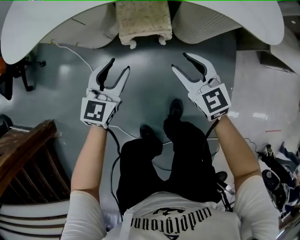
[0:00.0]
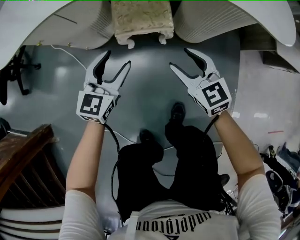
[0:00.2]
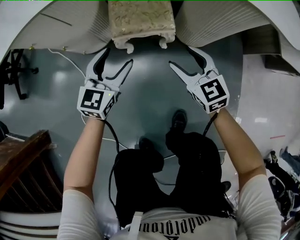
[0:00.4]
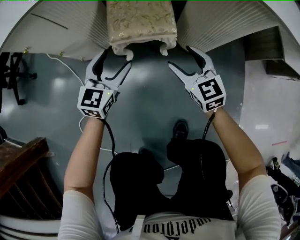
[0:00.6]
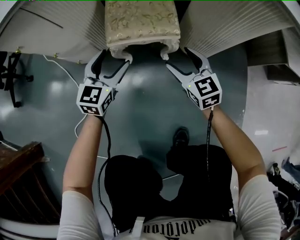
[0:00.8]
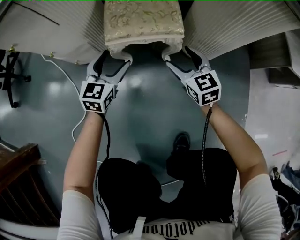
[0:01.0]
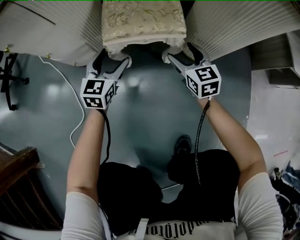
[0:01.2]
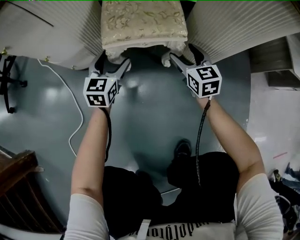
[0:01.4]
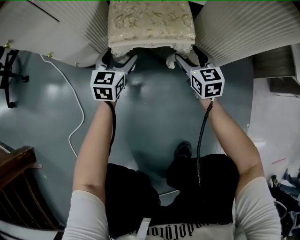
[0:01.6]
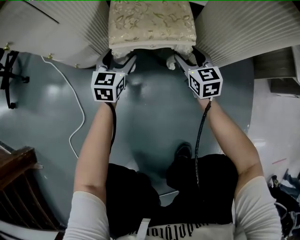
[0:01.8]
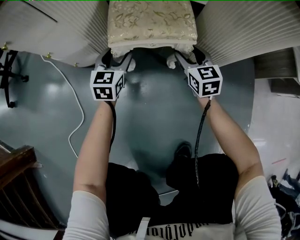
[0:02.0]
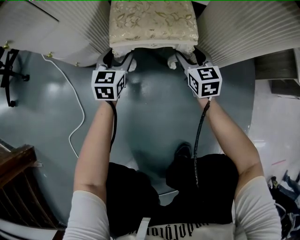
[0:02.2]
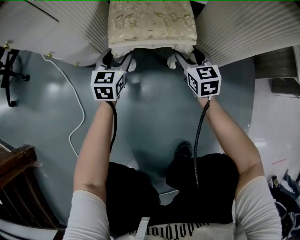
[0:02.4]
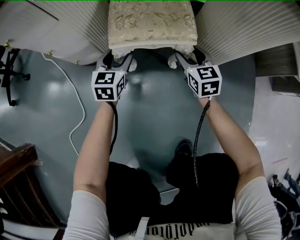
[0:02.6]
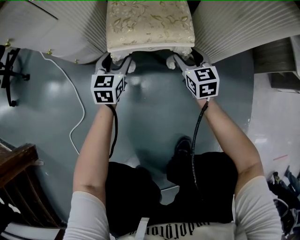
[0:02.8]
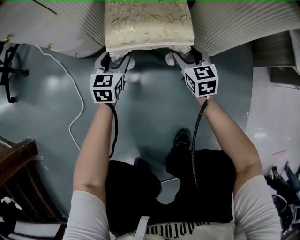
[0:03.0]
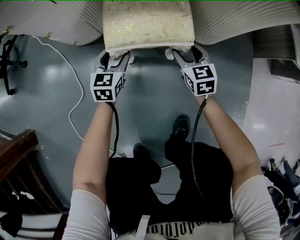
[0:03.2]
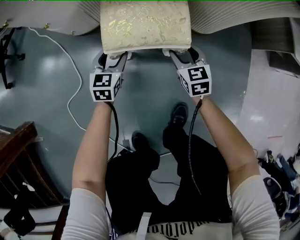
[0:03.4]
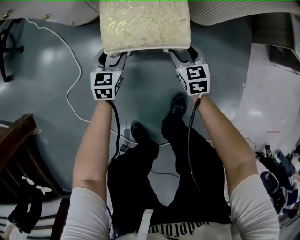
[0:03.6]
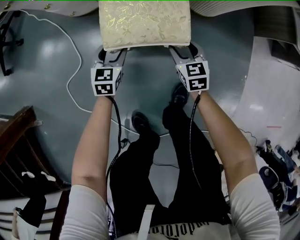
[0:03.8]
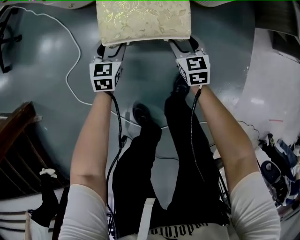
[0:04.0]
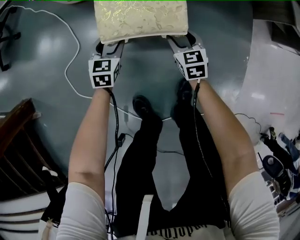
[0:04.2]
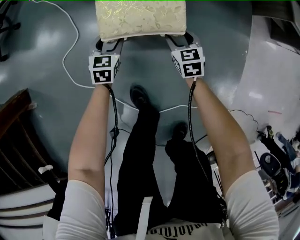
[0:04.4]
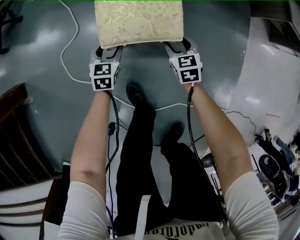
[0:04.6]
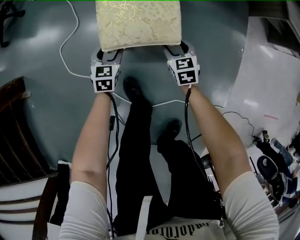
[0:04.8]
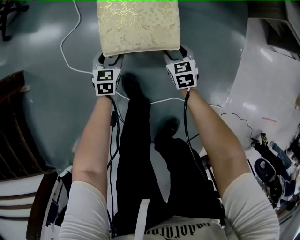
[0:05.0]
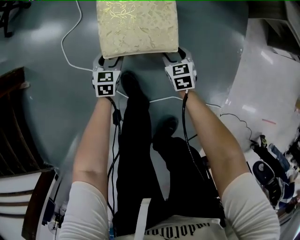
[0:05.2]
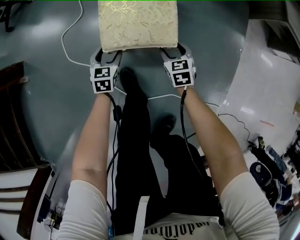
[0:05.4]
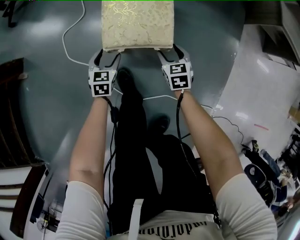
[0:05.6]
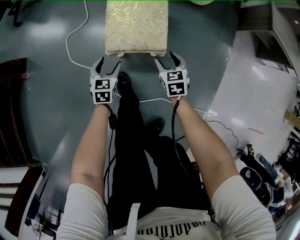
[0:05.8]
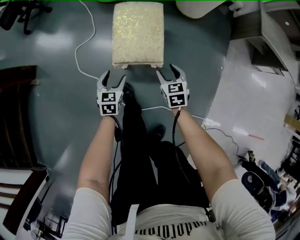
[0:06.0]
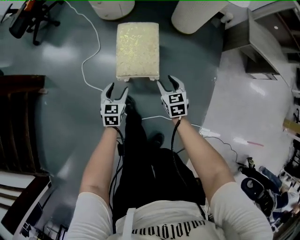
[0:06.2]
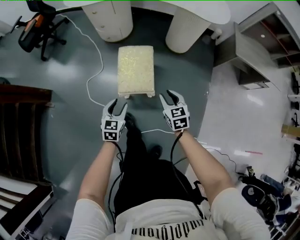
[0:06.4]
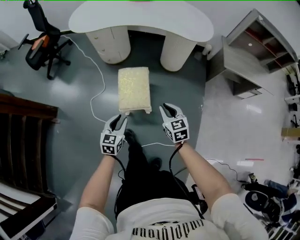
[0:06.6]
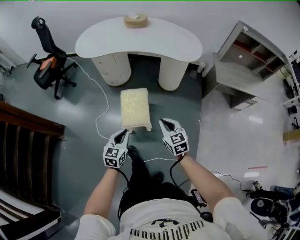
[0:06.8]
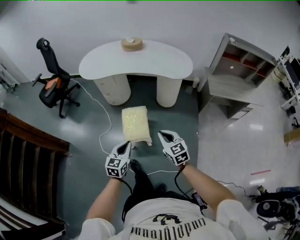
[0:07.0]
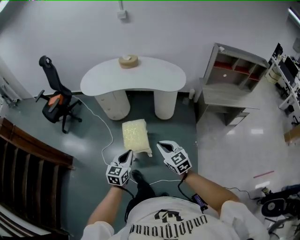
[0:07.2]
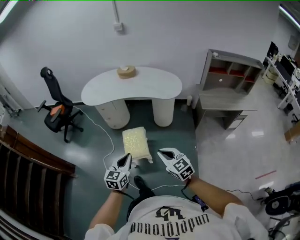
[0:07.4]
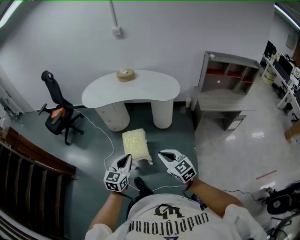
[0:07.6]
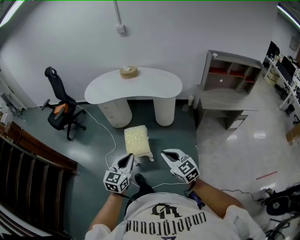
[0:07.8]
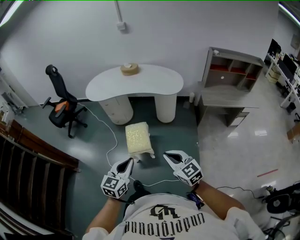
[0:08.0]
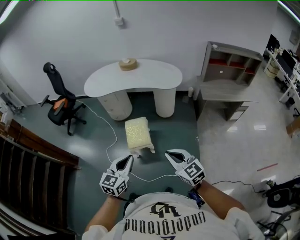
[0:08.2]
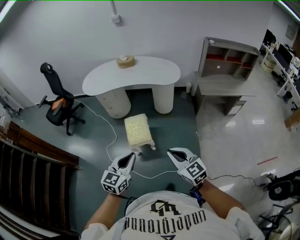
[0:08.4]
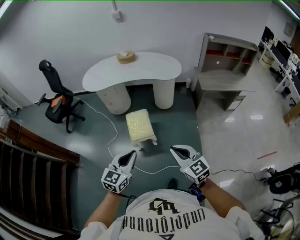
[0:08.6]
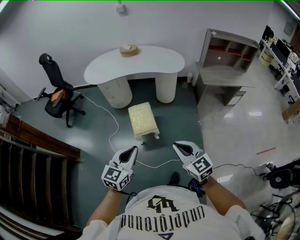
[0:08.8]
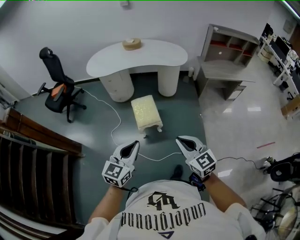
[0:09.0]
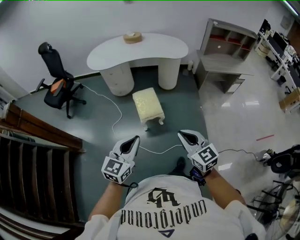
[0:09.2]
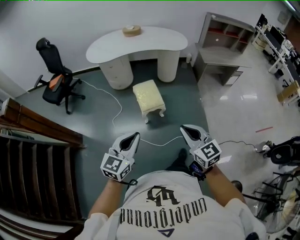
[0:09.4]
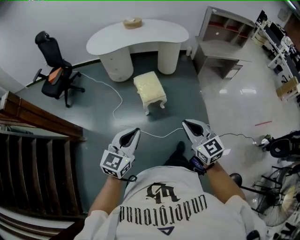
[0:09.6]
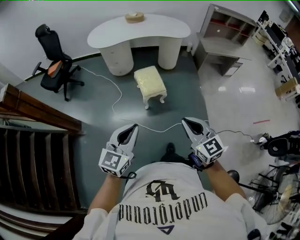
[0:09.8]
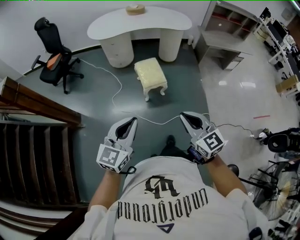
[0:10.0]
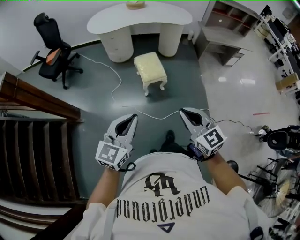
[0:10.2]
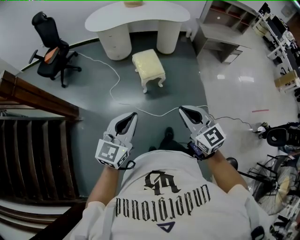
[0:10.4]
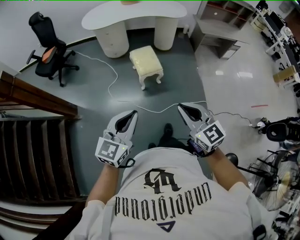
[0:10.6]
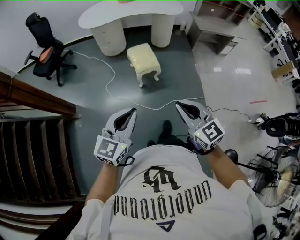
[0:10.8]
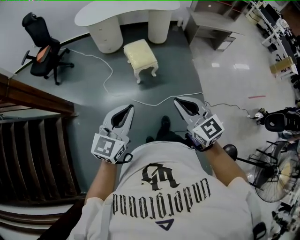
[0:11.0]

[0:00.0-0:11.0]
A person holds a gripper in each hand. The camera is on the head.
0:00.0 to 0:01.6: The two grippers go about 40 cm downward and forward. The left gripper opens its fingers; the right gripper opens.
0:01.6 to 0:03.2: The grippers both shift backward by about 10 cm.
0:03.2 to 0:04.8: Both grippers are carried backward, roughly 40 cm.
0:04.8 to 0:06.2: The grippers both shift upward by about 30 cm.
0:06.2 to 0:07.8: The grippers both shift upward by approximately 60 cm. The left gripper rotates some 30 degrees, and closes up; the right gripper rotates roughly 30 degrees, and closes.
0:07.8 to 0:09.4: The left gripper heads to the left and backward, covering about 30 cm. Meanwhile the right gripper travels backward and to the left by about 30 cm.
0:09.4 to 0:11.0: The right gripper moves backward and to the left, some 15 cm. The left gripper heads backward, covering approximately 15 cm.

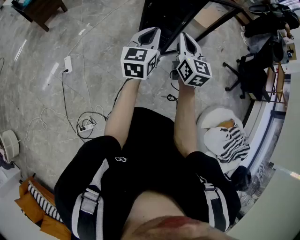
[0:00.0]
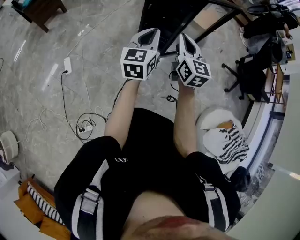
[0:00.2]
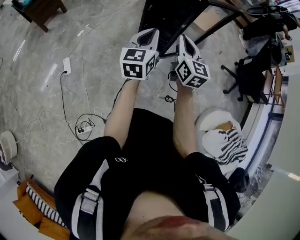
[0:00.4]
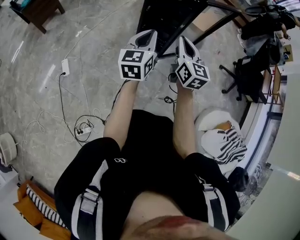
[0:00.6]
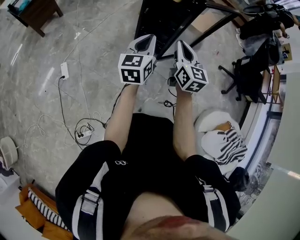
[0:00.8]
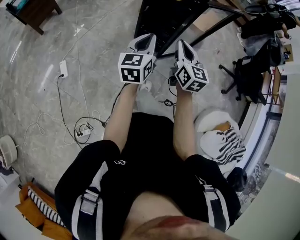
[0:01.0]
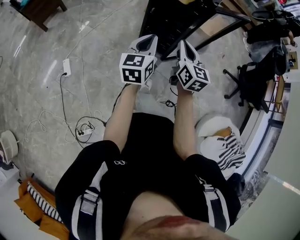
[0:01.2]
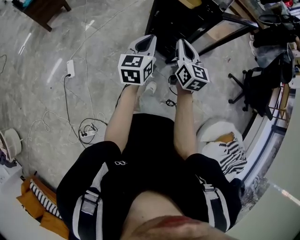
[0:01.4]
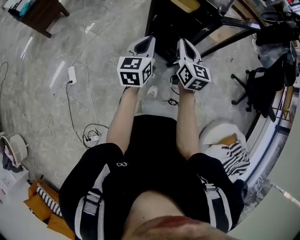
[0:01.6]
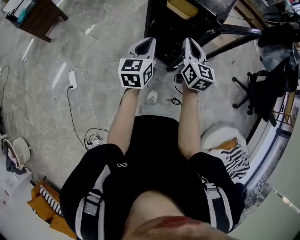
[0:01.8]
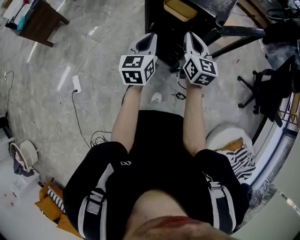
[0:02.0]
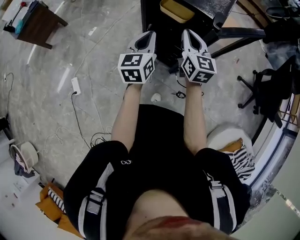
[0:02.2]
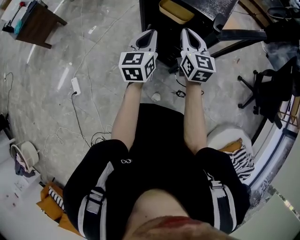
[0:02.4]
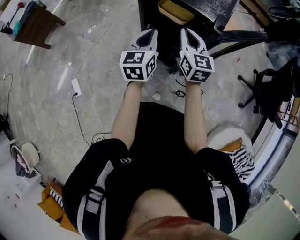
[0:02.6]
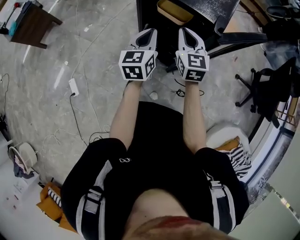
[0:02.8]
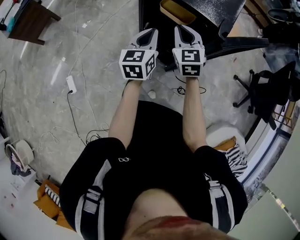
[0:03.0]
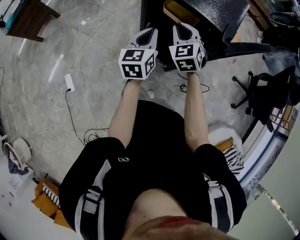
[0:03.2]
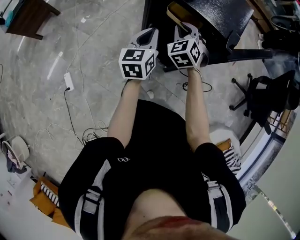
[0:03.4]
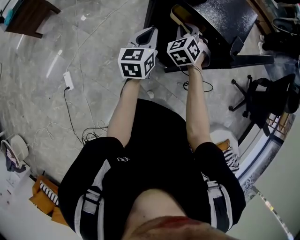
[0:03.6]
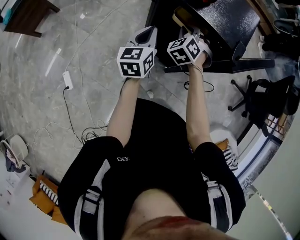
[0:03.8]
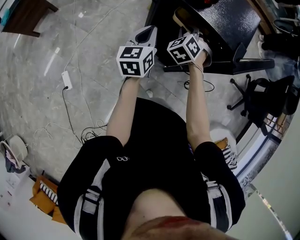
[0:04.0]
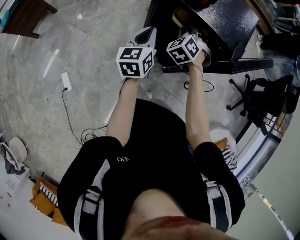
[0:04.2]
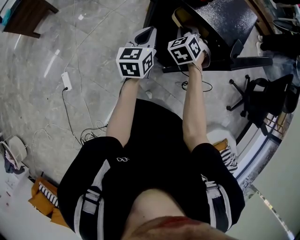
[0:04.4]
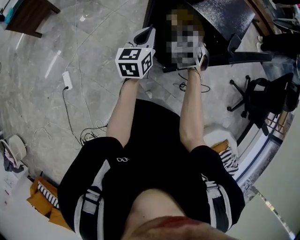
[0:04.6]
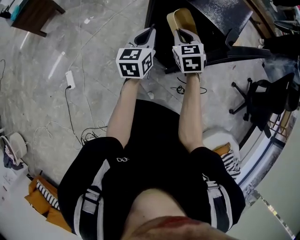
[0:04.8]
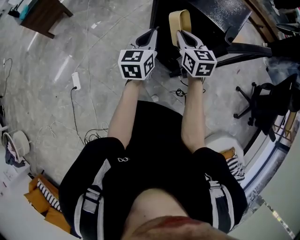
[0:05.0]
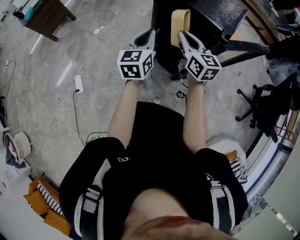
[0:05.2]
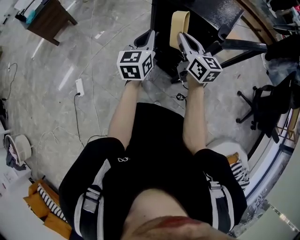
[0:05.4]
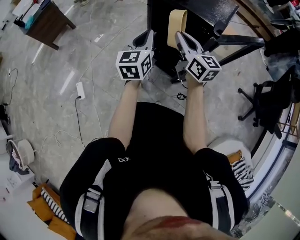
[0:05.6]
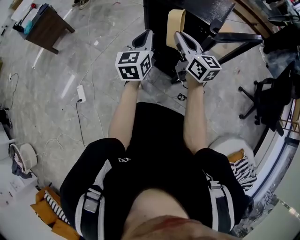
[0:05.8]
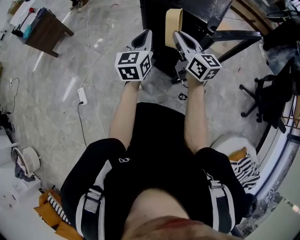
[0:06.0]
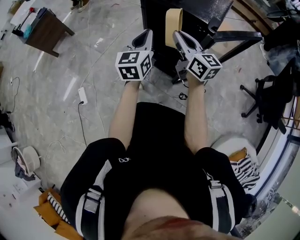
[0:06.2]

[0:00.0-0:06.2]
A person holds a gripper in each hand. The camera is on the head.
0:00.0 to 0:01.6: The two grippers go some 20 cm forward.
0:01.6 to 0:03.2: The two grippers go approximately 25 cm forward. The right gripper twists about 40 degrees counterclockwise, seen from behind.
0:04.6 to 0:06.2: Both grippers travel together backward and upward, some 15 cm. The right gripper tilts its fingers about 40 degrees upward.

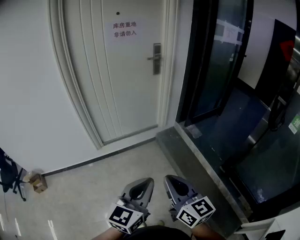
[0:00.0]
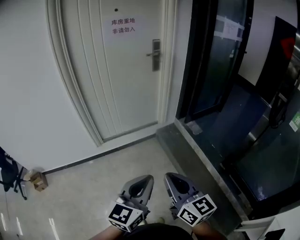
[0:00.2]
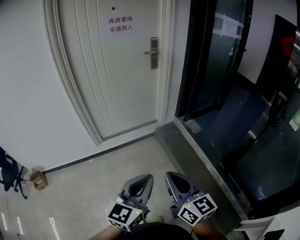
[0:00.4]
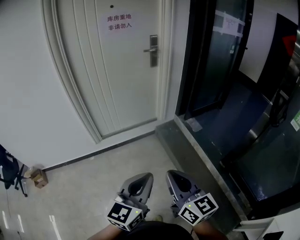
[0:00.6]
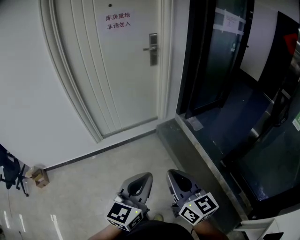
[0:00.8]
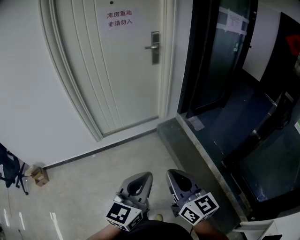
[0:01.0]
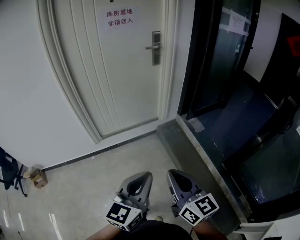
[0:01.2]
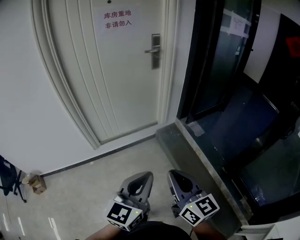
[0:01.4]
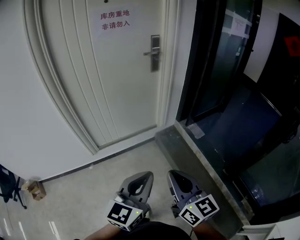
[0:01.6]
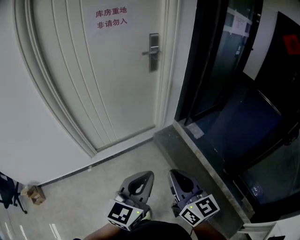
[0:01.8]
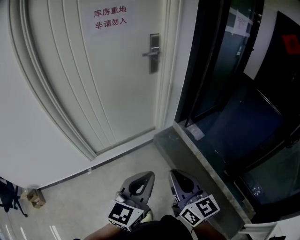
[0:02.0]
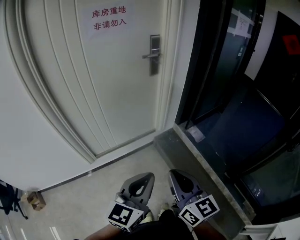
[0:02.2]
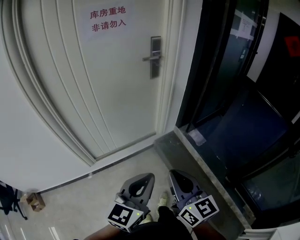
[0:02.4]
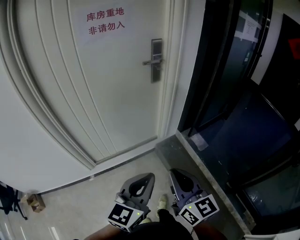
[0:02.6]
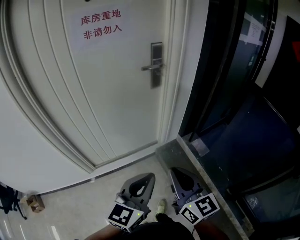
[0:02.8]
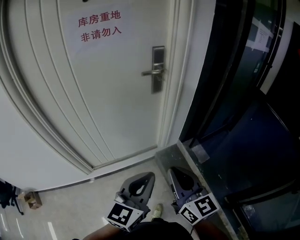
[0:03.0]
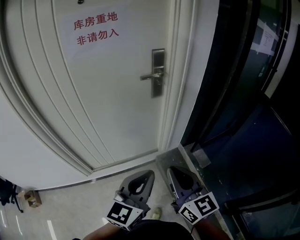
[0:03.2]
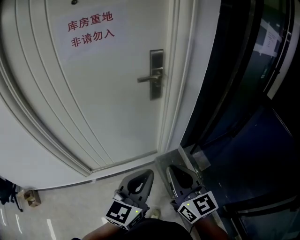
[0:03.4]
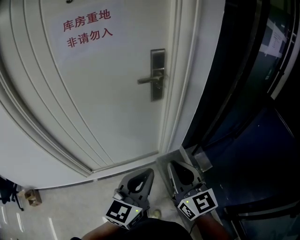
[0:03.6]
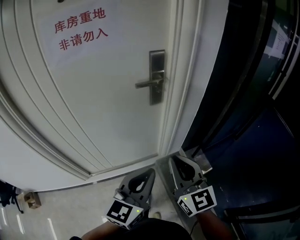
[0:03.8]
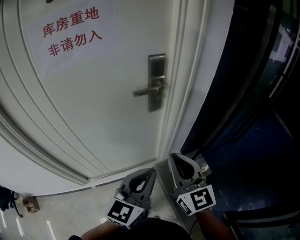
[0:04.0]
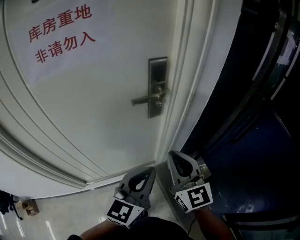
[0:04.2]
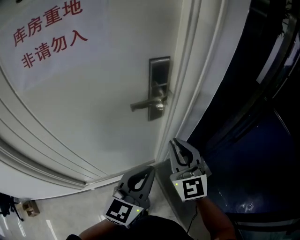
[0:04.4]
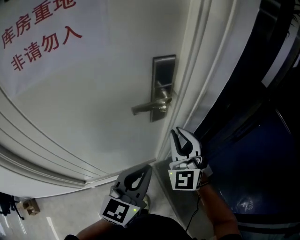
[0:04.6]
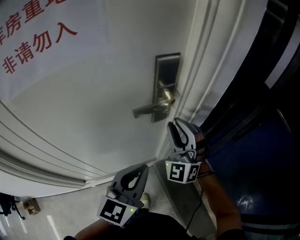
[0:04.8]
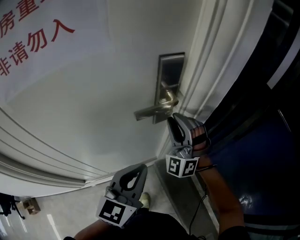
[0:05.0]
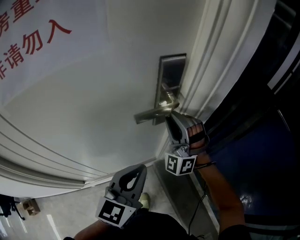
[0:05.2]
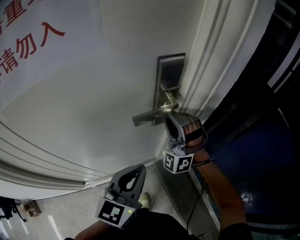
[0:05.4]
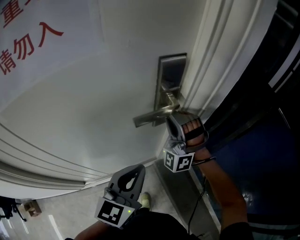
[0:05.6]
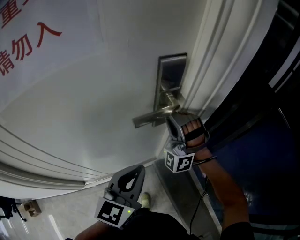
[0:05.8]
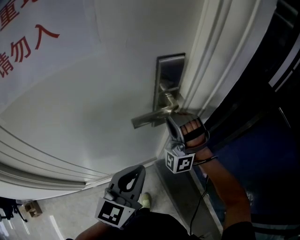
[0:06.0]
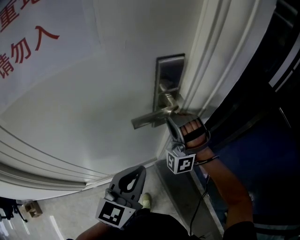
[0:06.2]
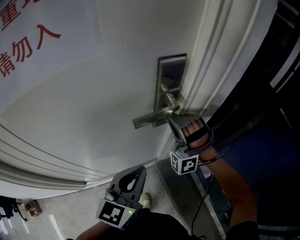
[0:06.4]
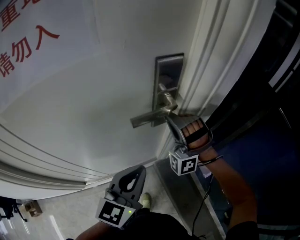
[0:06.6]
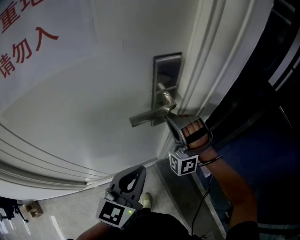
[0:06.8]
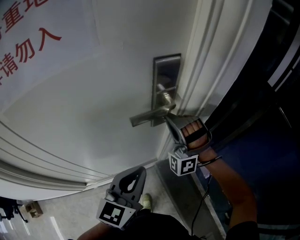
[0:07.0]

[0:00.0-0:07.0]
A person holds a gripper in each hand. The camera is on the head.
0:00.0 to 0:01.4: Both grippers travel together forward, roughly 10 cm.
0:01.4 to 0:02.8: The grippers both shift forward by roughly 30 cm.
0:02.8 to 0:04.2: Both grippers move forward, roughly 35 cm.
0:04.2 to 0:05.6: The right gripper is displaced forward by about 25 cm, and twists some 80 degrees counterclockwise, seen from behind, while the left gripper is displaced forward and to the left by roughly 15 cm.
0:05.6 to 0:07.0: There are only small adjustments of the grippers.
